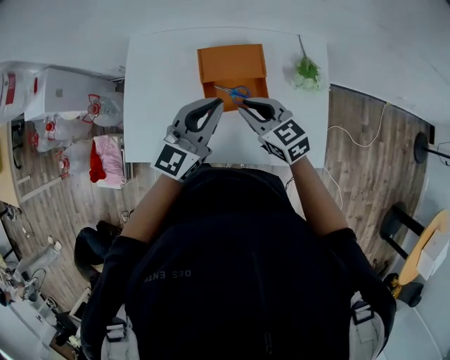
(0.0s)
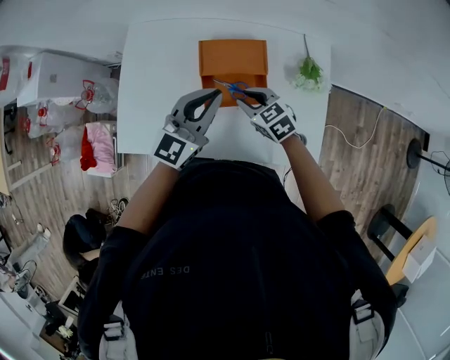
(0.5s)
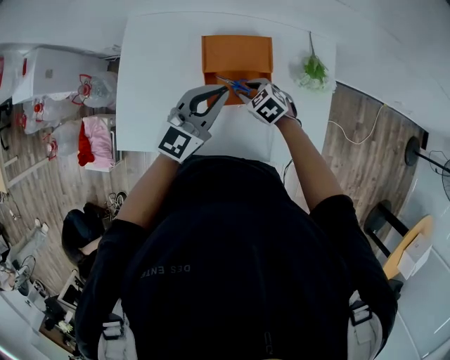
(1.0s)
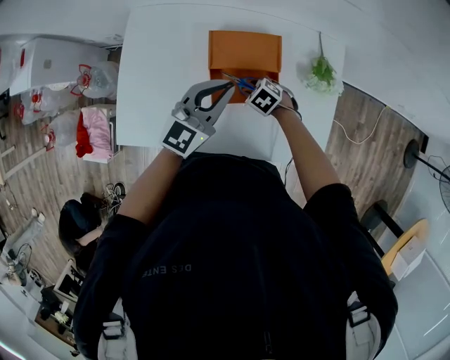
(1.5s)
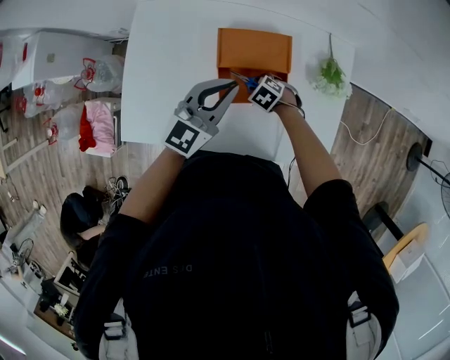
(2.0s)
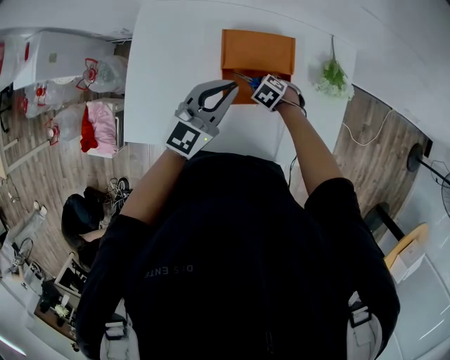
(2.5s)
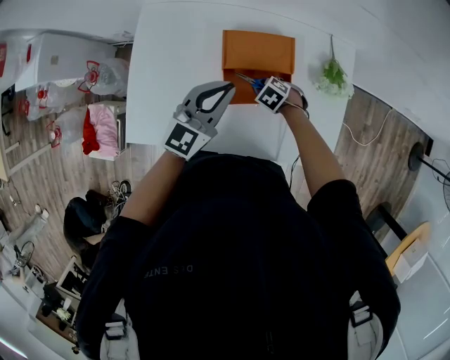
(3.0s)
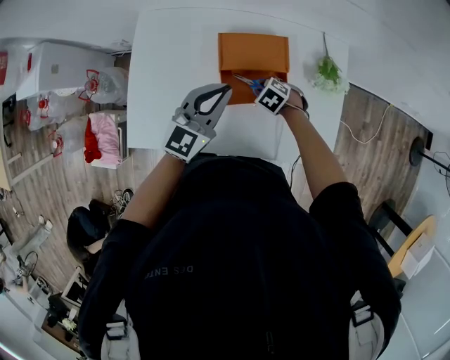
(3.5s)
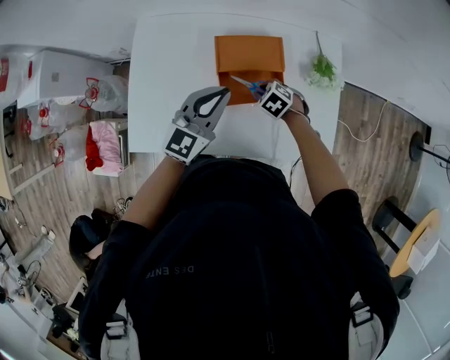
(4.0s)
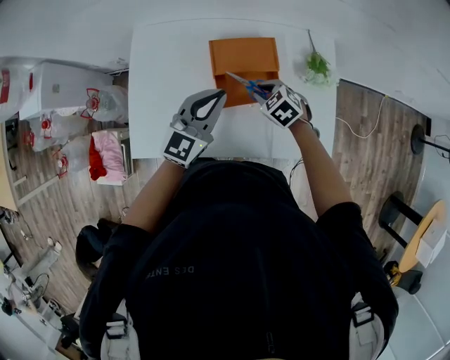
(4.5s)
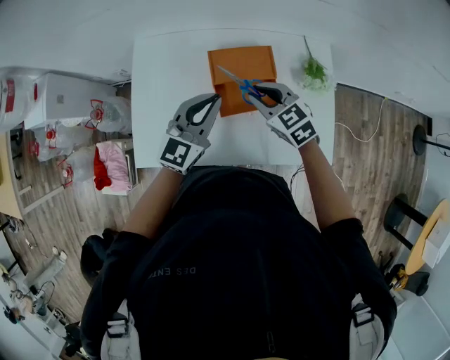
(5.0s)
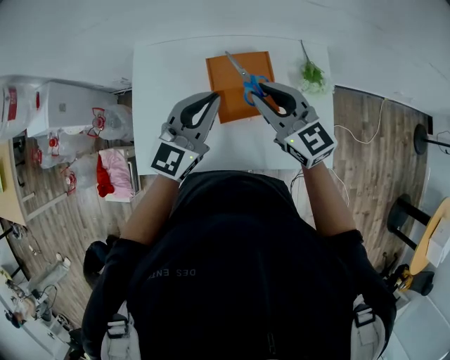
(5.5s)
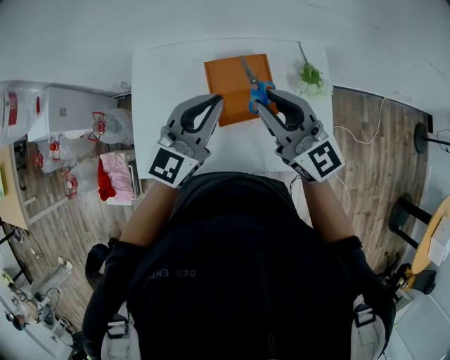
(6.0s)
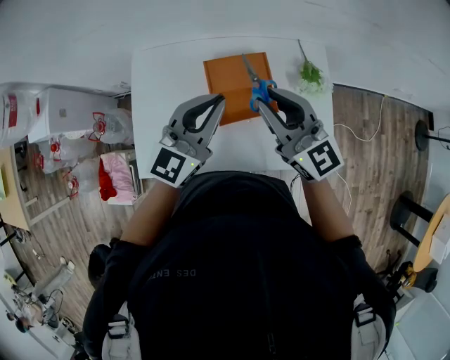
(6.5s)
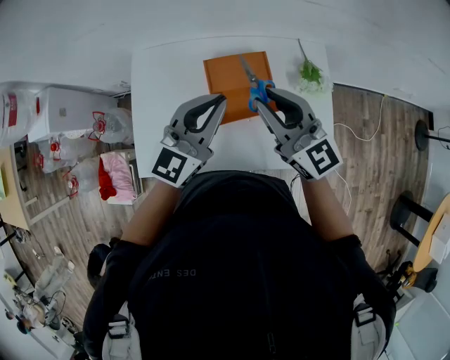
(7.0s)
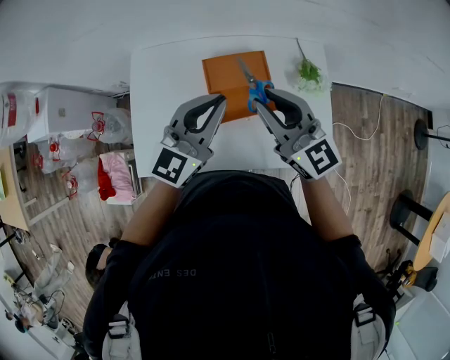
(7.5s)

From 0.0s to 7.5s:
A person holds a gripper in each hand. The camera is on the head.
From 0.0s to 2.0s: The left gripper goes some 10 cm downward. The right gripper heads downward, covering about 25 cm, tips its fingers downward by approximately 50 degrees, and opens.
From 2.0s to 4.0s: The right gripper moves upward, about 5 cm.
From 4.0s to 5.5s: The left gripper moves upward, roughly 10 cm. Meanwhile the right gripper is displaced upward by approximately 30 cm, and angles its fingers upward, by roughly 60 degrees.
From 5.5s to 7.5s: The right gripper moves some 5 cm.

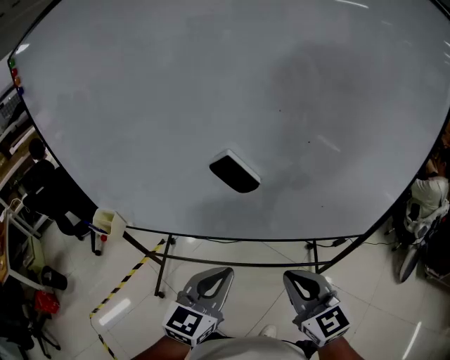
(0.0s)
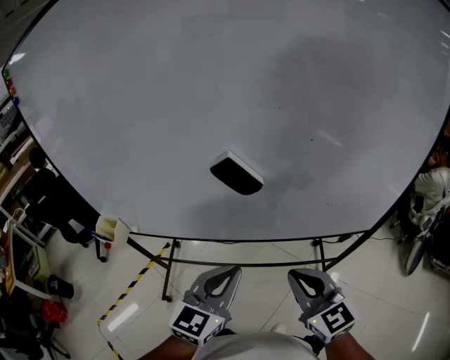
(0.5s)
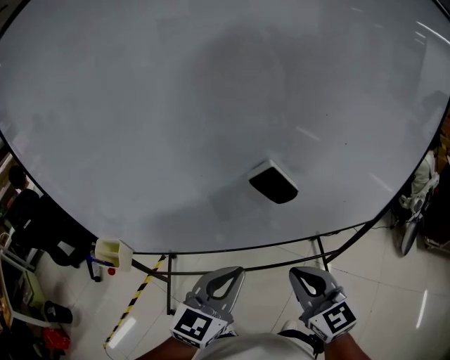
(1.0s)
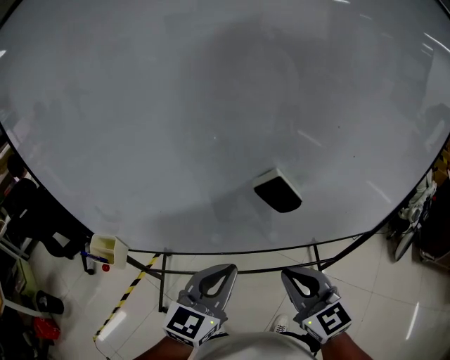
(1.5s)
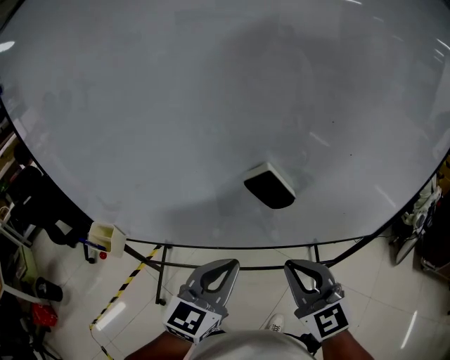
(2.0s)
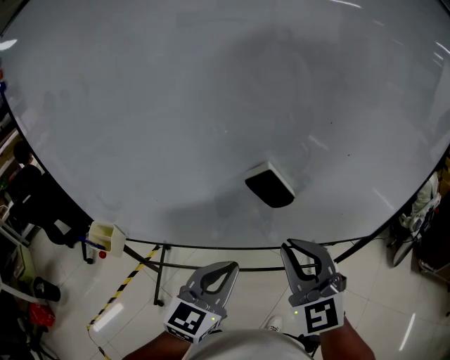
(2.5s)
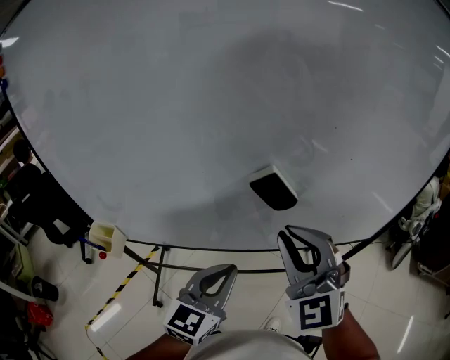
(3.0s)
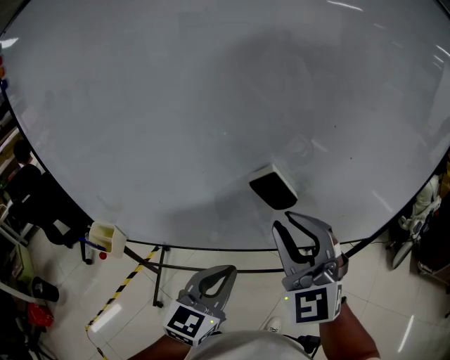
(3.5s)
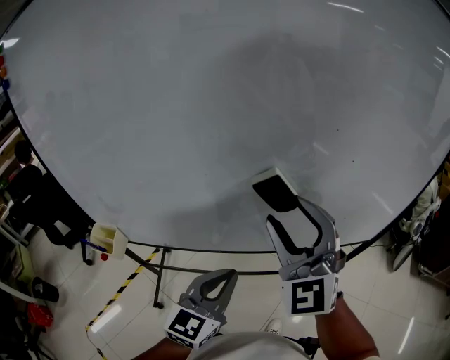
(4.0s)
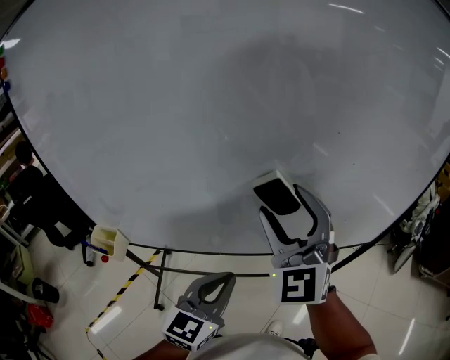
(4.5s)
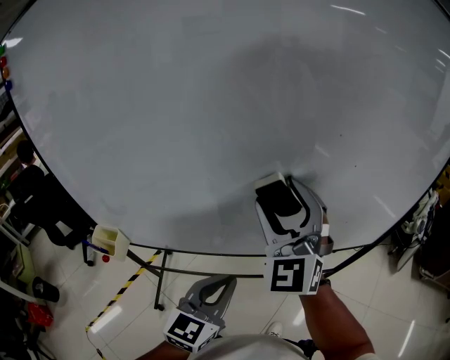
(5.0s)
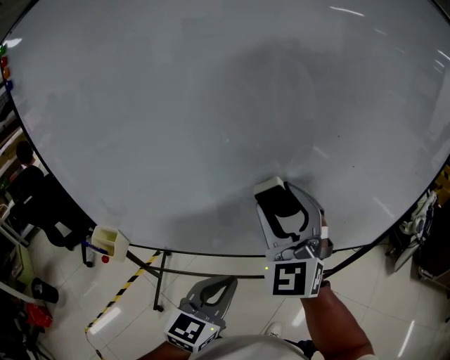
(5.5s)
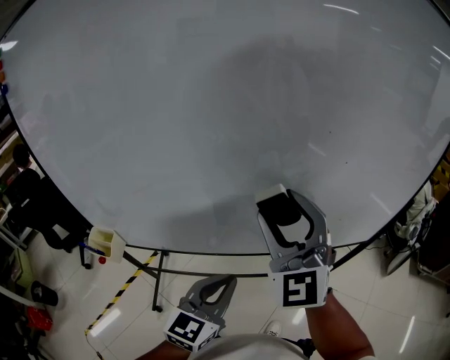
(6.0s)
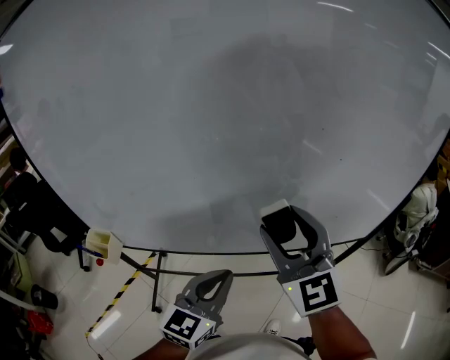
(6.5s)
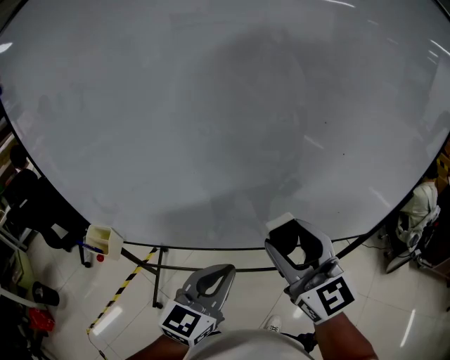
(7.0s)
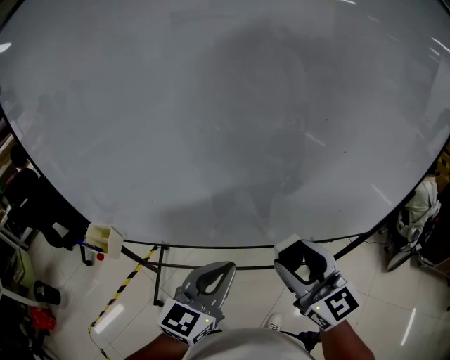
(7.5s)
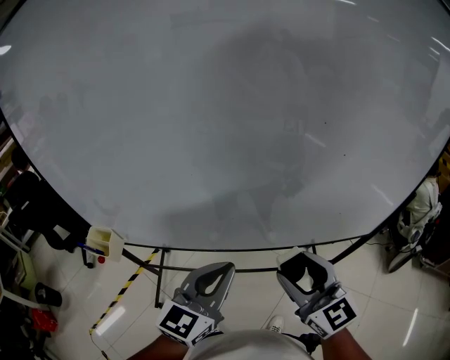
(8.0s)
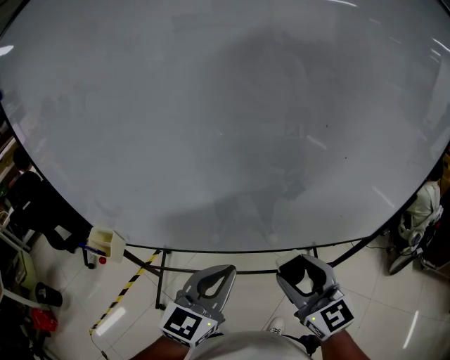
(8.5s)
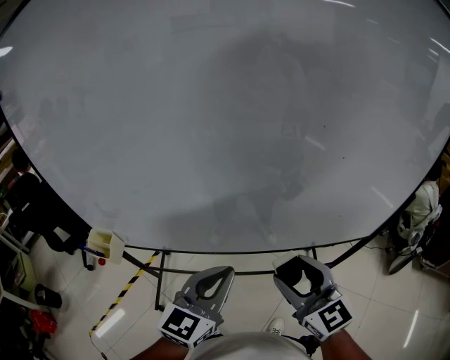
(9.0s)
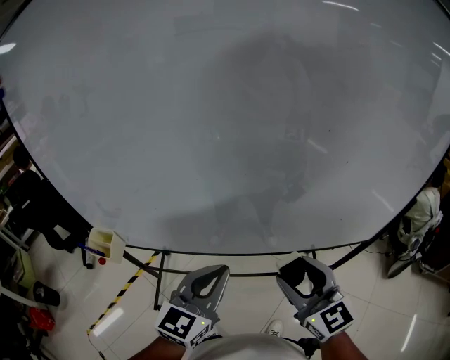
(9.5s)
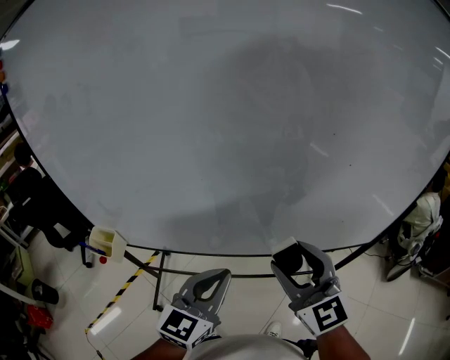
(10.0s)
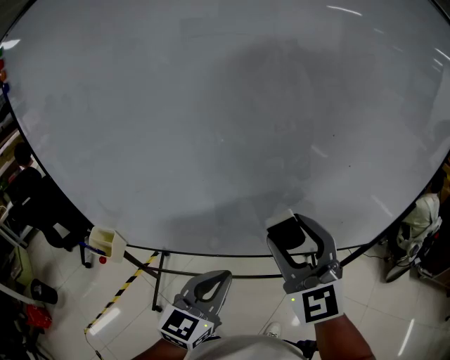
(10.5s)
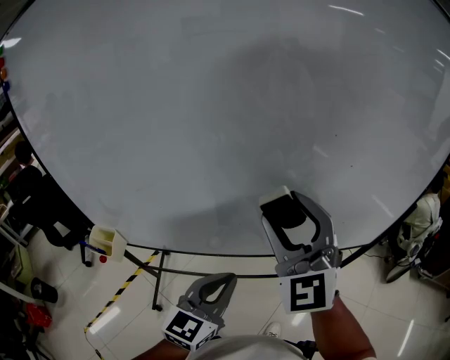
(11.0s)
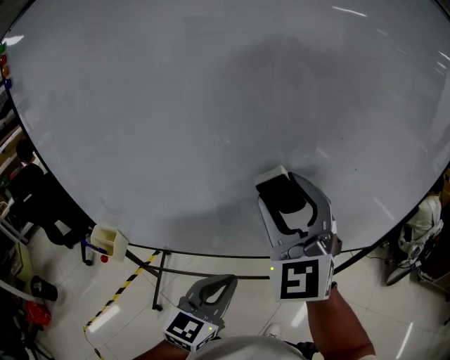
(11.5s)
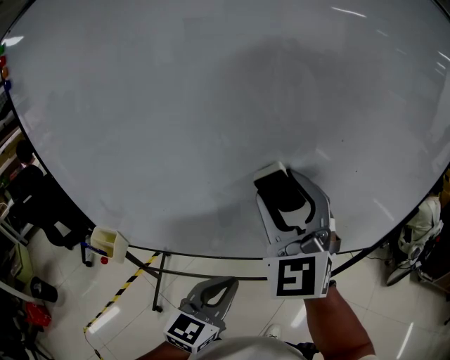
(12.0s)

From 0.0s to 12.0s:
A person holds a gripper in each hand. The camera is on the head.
From 0.0s to 2.0s: The right gripper goes approximately 10 cm to the left and forward; the left gripper goes some 10 cm forward and to the left.
From 2.0s to 4.0s: The right gripper travels upward and forward by some 10 cm, swivels roughly 30 degrees, and opens up.
From 4.0s to 6.0s: The grippers make only small movements.
From 6.0s to 8.0s: The right gripper is displaced downward, backward and to the right by about 15 cm, and changes its angle by about 40 degrees.
From 8.0s to 10.0s: The right gripper shifts by approximately 5 cm.
From 10.0s to 12.0s: The right gripper goes roughly 15 cm upward, forward and to the left, and rotates roughly 30 degrees.

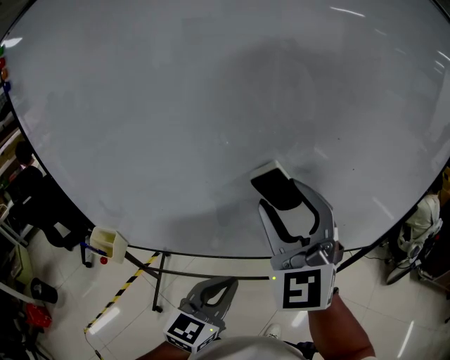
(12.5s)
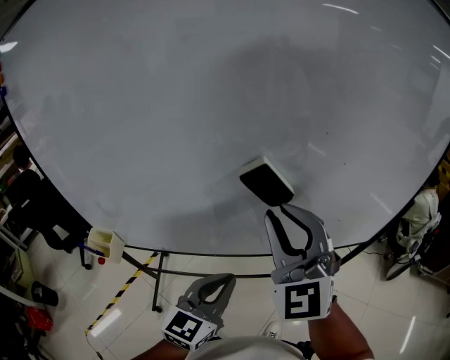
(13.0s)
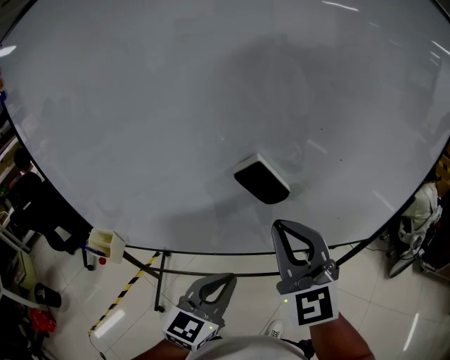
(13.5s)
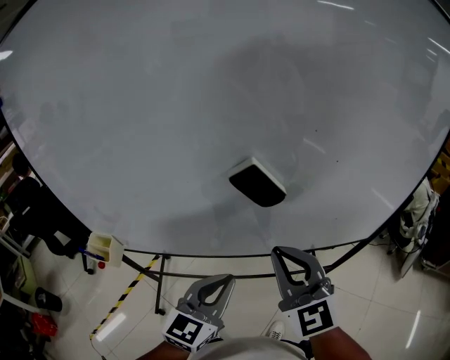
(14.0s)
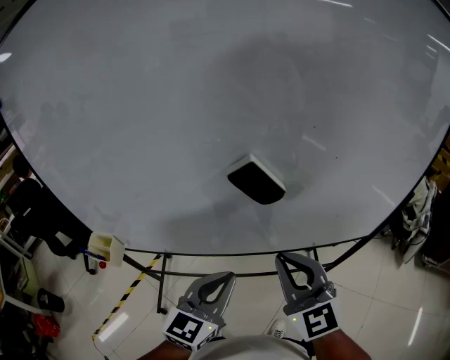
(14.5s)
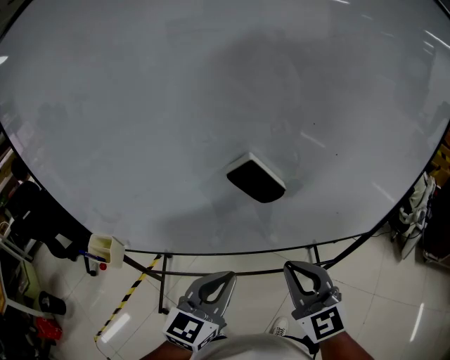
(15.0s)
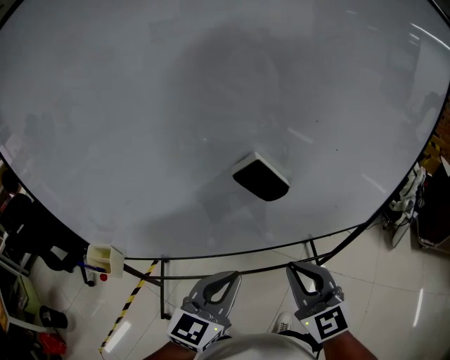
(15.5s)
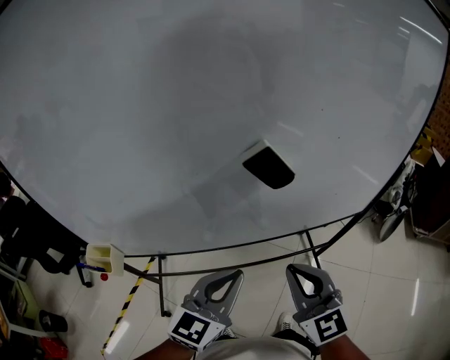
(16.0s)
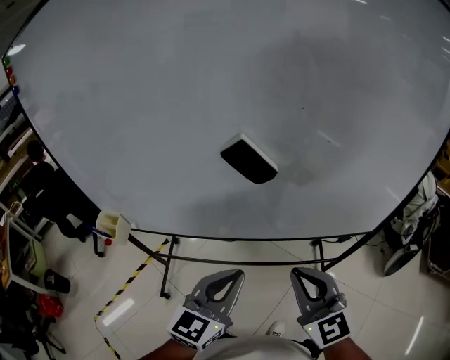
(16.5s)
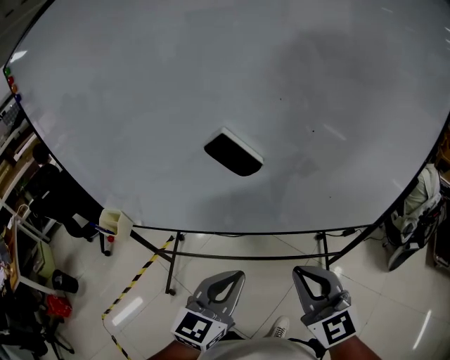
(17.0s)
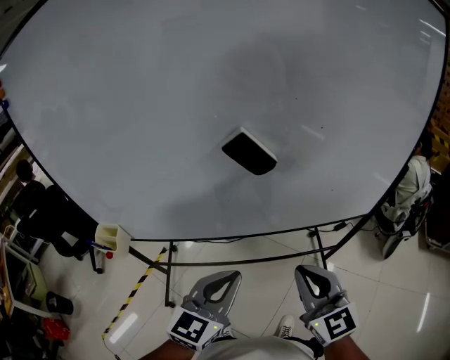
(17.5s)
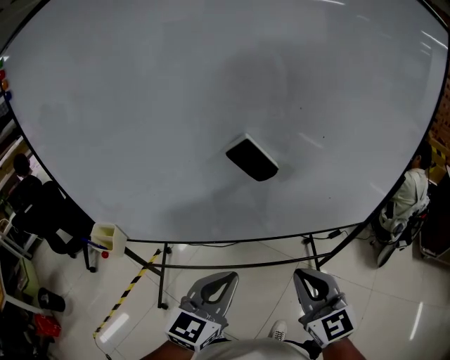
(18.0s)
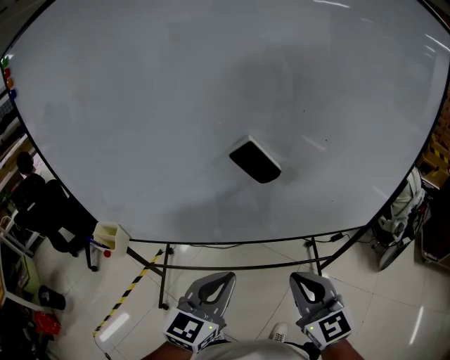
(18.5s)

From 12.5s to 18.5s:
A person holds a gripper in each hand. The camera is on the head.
From 12.5s to 14.5s: The right gripper is displaced downward, backward and to the right by approximately 15 cm, swivels some 30 degrees, and closes.
From 14.5s to 16.5s: The right gripper moves to the right and backward, roughly 10 cm. The left gripper changes place by approximately 5 cm.
From 16.5s to 18.5s: The grippers make only small movements.

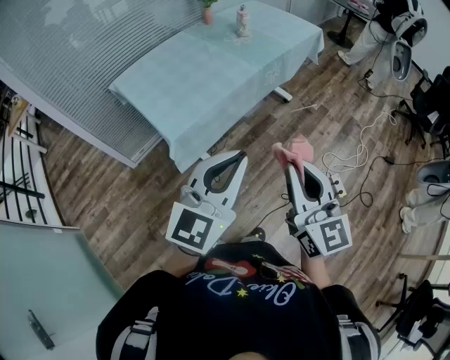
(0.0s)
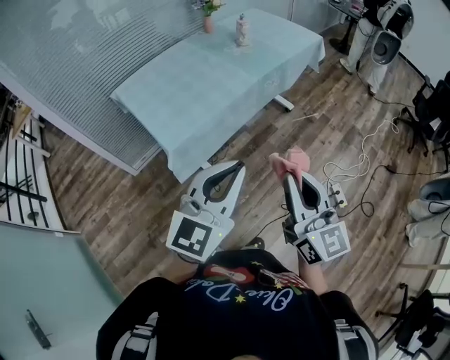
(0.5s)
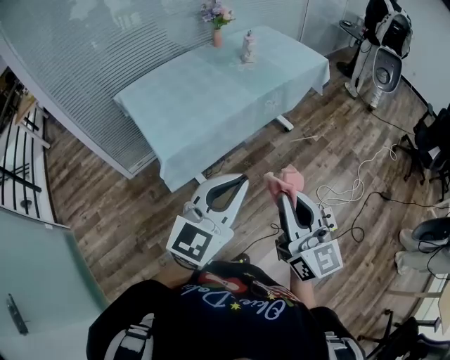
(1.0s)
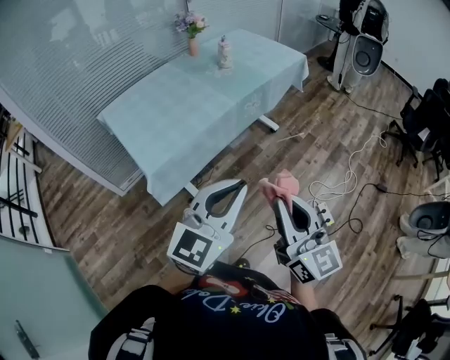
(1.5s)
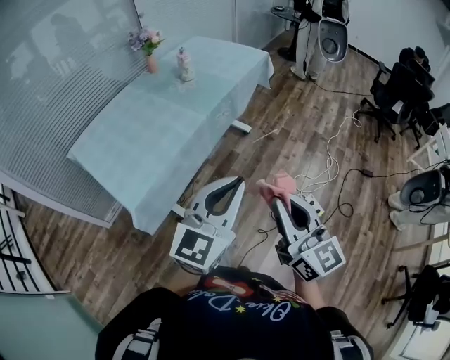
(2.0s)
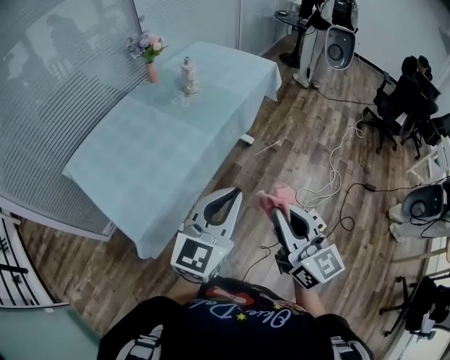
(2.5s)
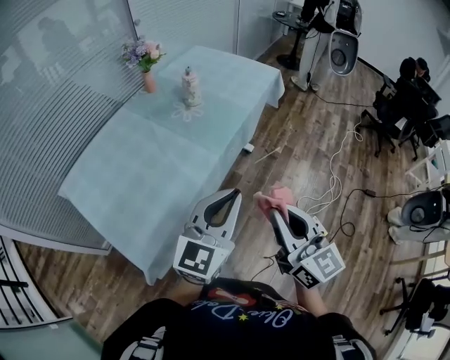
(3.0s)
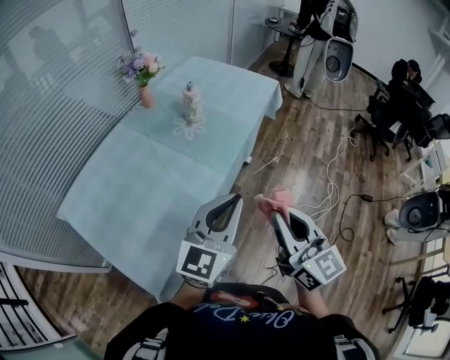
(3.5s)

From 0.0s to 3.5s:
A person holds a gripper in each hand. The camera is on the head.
From 0.0s to 2.0s: The left gripper is displaced forward and to the right by roughly 15 cm. The right gripper travels to the right and forward by approximately 10 cm.
From 2.0s to 3.5s: The two grippers go about 25 cm forward and to the left.
